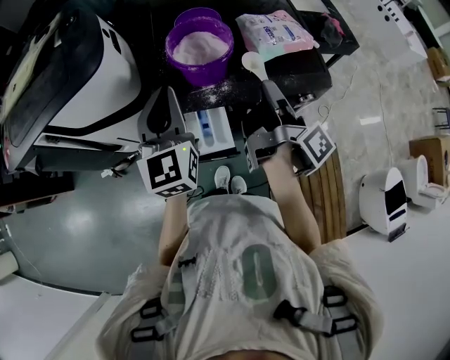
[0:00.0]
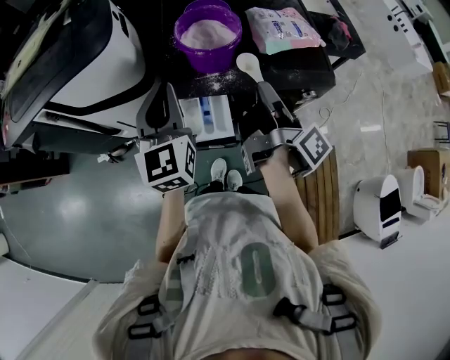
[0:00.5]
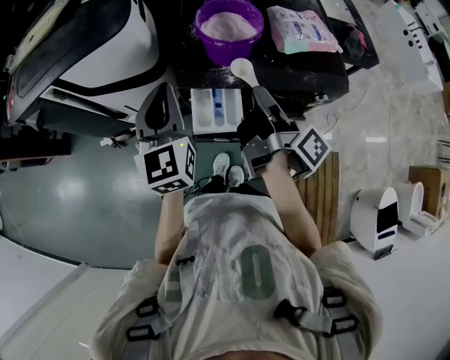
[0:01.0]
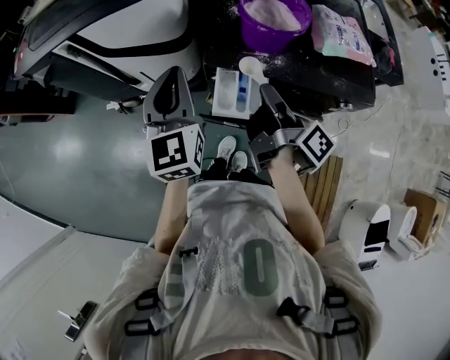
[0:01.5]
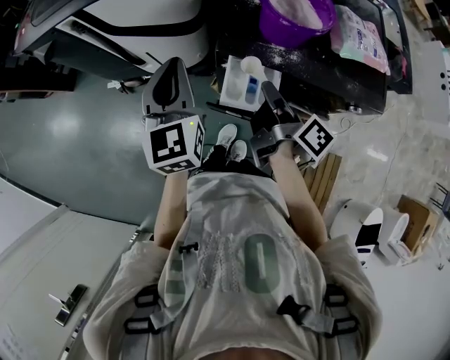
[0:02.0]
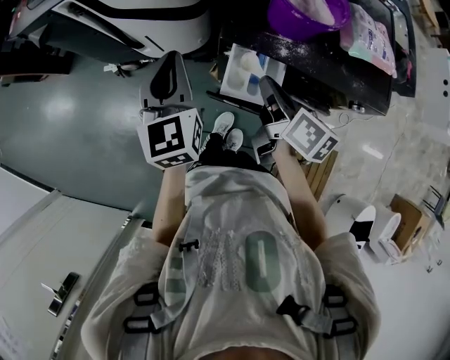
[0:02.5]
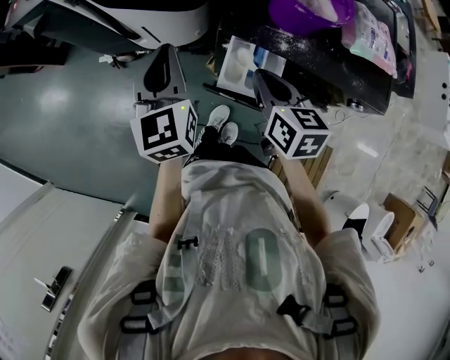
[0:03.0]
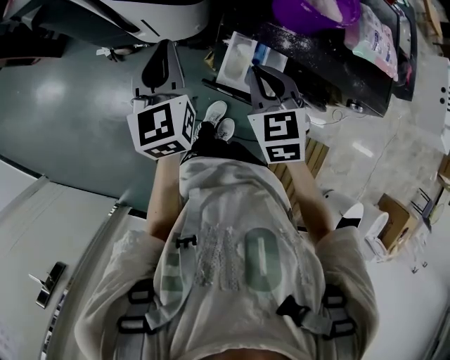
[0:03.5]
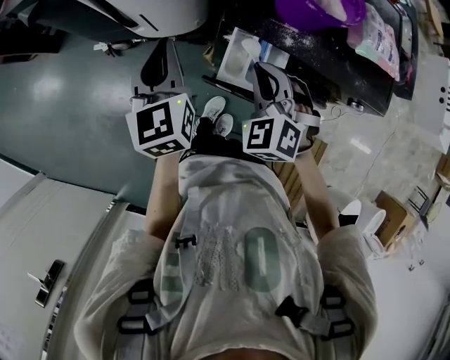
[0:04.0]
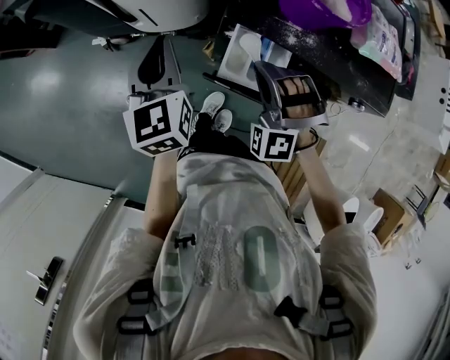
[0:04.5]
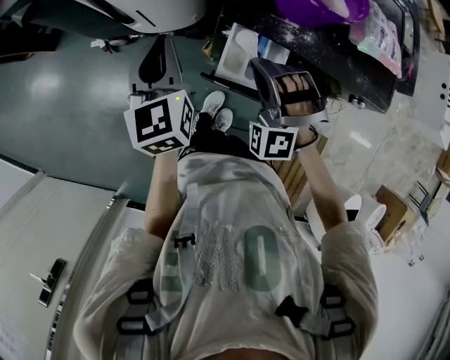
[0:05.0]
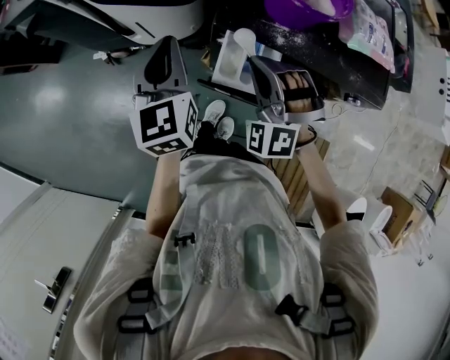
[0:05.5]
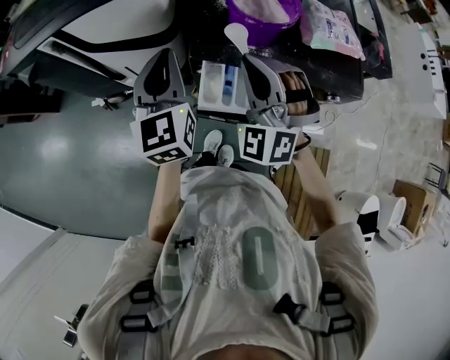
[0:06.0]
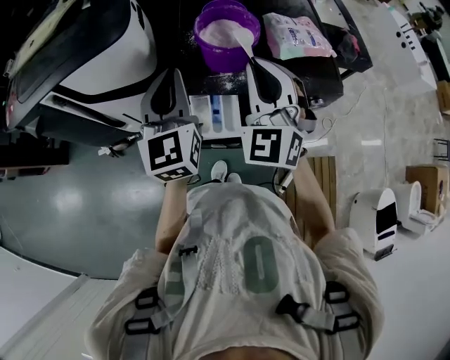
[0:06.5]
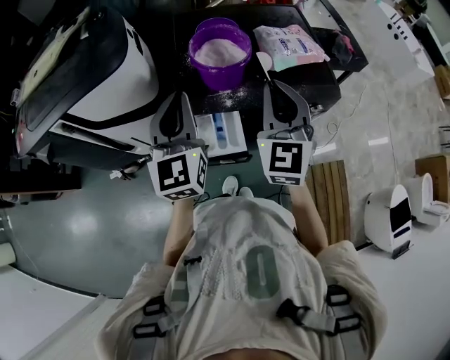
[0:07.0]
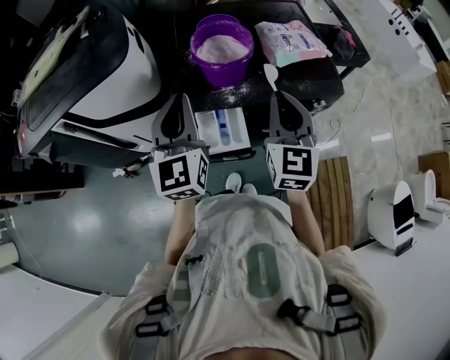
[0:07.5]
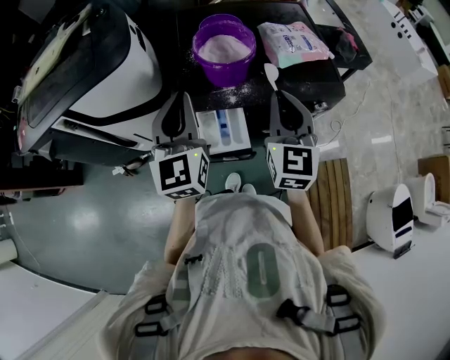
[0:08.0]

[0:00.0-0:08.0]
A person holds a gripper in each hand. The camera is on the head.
0:00.0 to 0:02.0: The right gripper shifts by roughly 20 cm, and rotates approximately 40 degrees; the left gripper changes place by approximately 15 cm, and changes its angle by some 20 degrees.
0:02.0 to 0:04.0: The right gripper moves to the left, approximately 5 cm, and twists some 130 degrees counterclockwise, seen from behind; the left gripper is displaced downward by approximately 5 cm.
0:04.0 to 0:06.0: The right gripper travels upward by about 15 cm, and turns by some 30 degrees, while the left gripper travels to the right and upward by about 10 cm.
0:06.0 to 0:08.0: The right gripper is displaced to the right by about 15 cm, and rolls clockwise, seen from behind, by about 60 degrees, while the left gripper shifts approximately 10 cm to the right and upward.

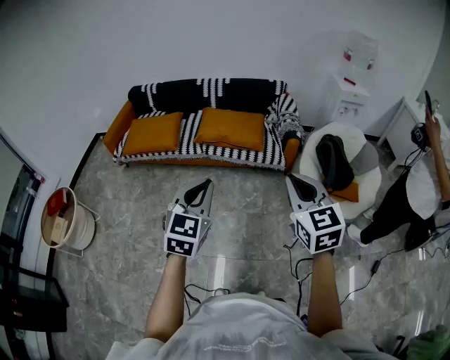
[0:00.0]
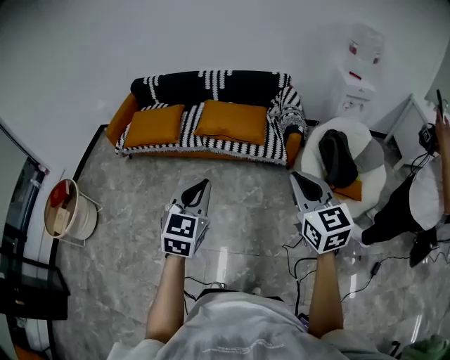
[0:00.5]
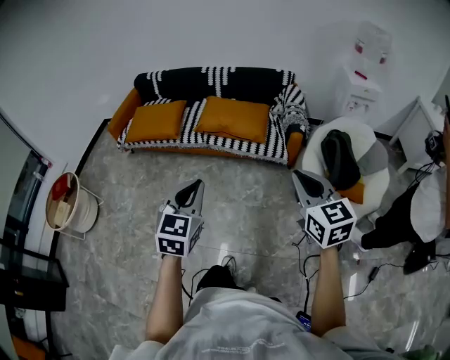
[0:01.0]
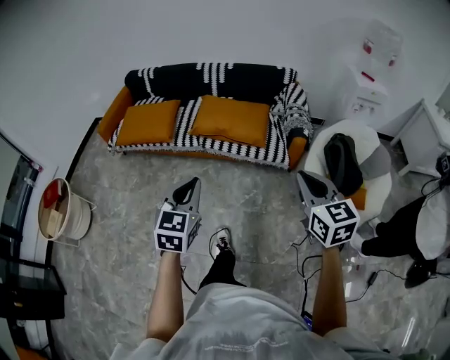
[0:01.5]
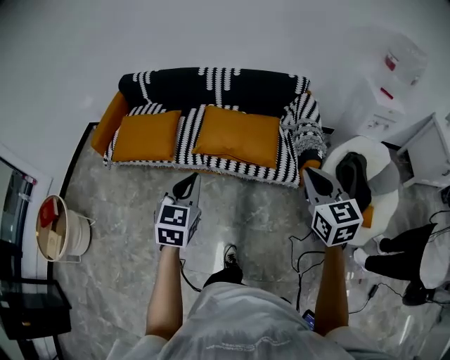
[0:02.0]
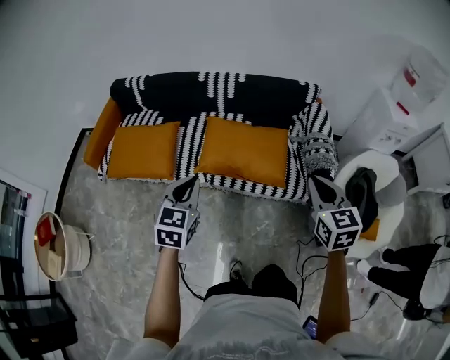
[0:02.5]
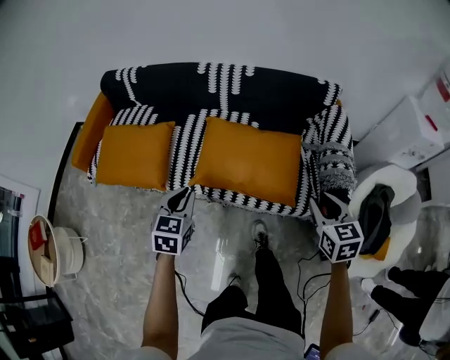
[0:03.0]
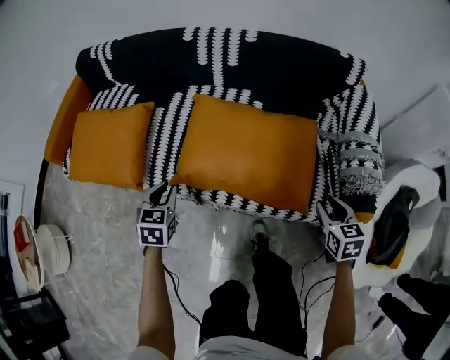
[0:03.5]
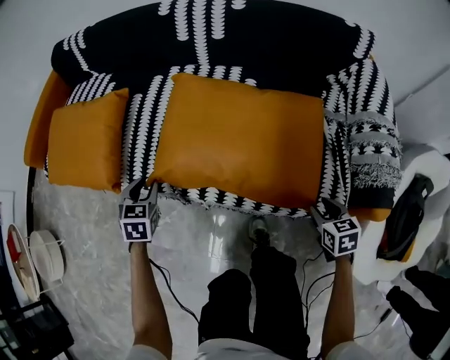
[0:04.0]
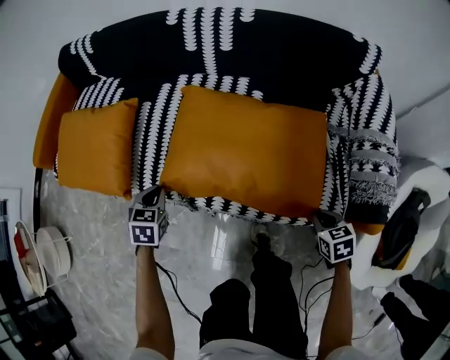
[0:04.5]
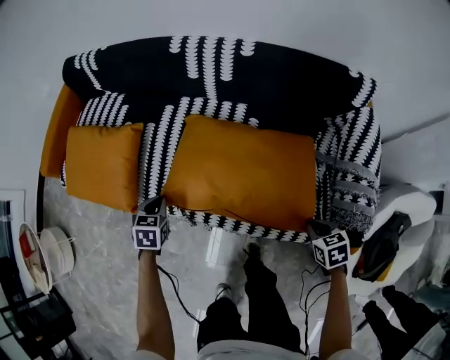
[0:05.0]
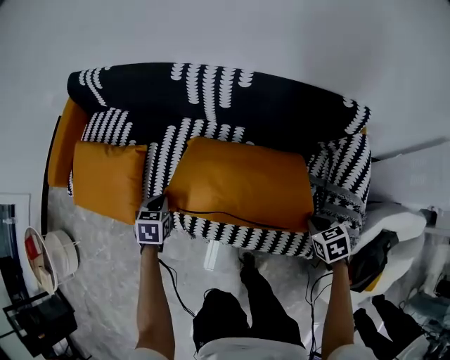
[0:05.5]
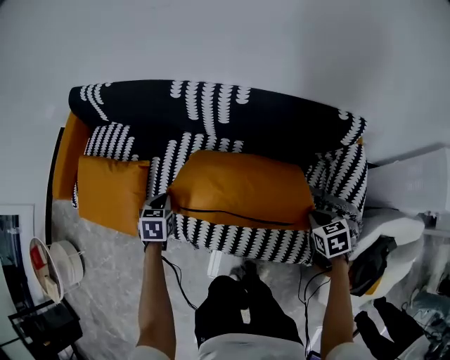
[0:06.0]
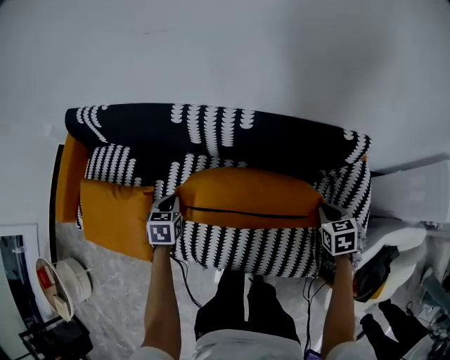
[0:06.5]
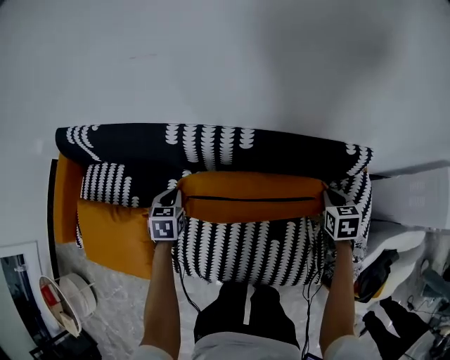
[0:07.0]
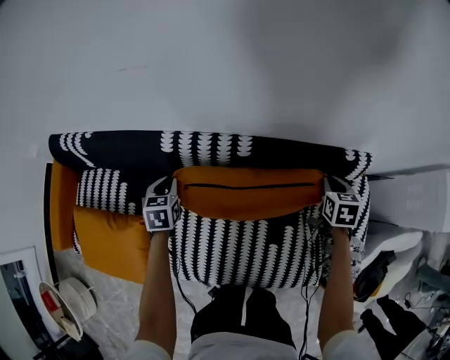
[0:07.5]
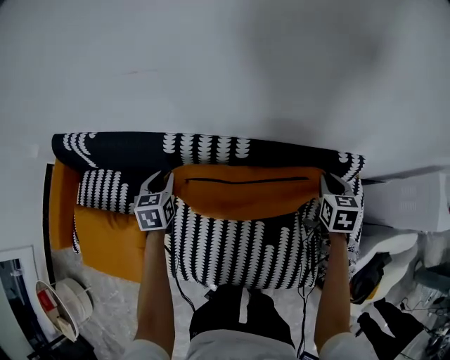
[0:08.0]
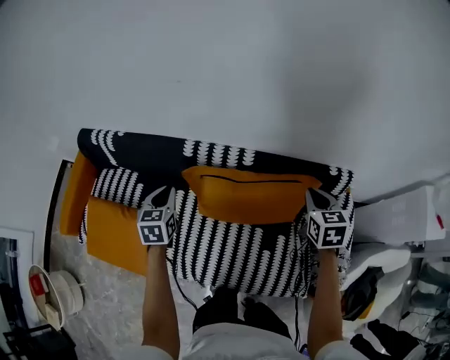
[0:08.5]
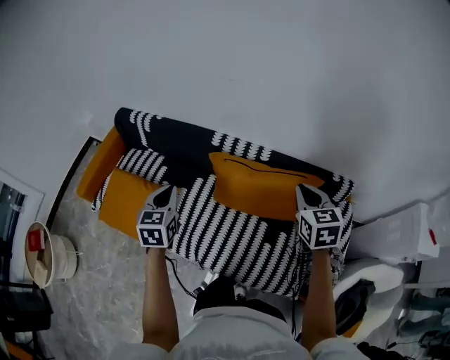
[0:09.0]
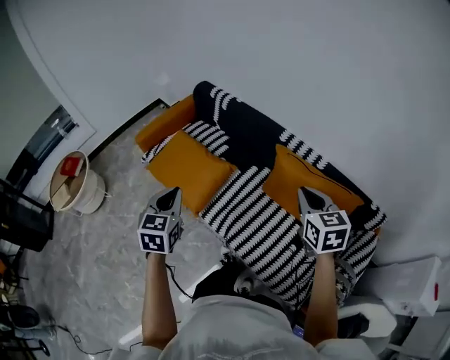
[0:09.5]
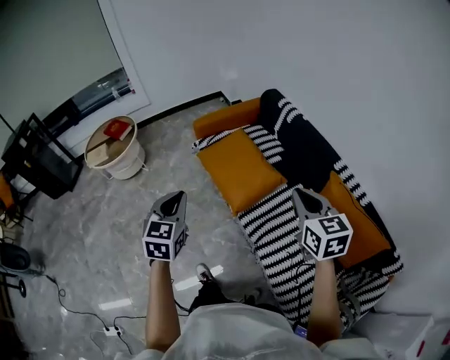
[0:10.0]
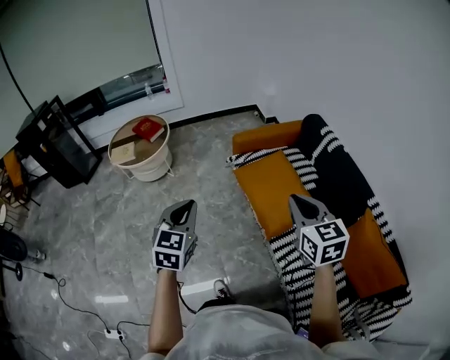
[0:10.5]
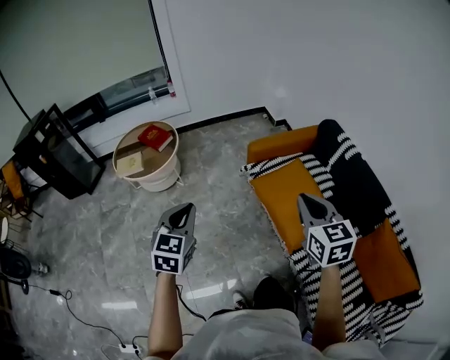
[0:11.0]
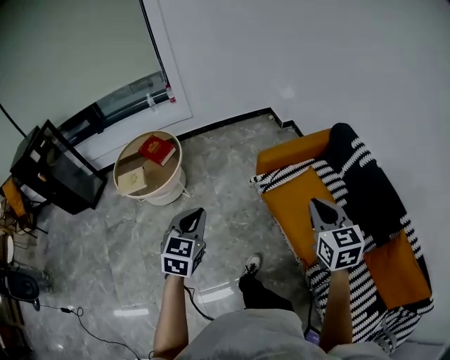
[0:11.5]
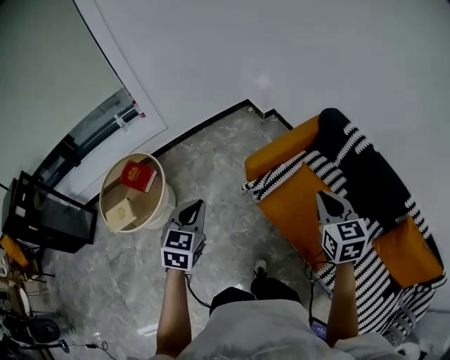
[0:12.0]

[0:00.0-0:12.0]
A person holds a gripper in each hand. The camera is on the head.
0:00.0 to 0:02.0: Both grippers travel together forward, approximately 35 cm.
0:02.0 to 0:04.0: Both grippers move downward and forward, approximately 70 cm. The left gripper changes its angle by about 30 degrees, and opens its fingers; the right gripper tilts its fingers approximately 40 degrees downward, and opens its fingers.
0:04.0 to 0:06.0: The right gripper is displaced upward, forward and to the right by about 30 cm, and closes up. The left gripper goes approximately 25 cm forward, upward and to the right, and closes up.
0:06.0 to 0:08.0: The grippers both shift forward by some 30 cm. The right gripper changes its angle by approximately 30 degrees. Meanwhile the left gripper opens up.
0:08.0 to 0:10.0: The pair of grippers is taken approximately 70 cm. The right gripper rotates some 80 degrees. The left gripper turns by some 50 degrees, and closes its fingers.
0:10.0 to 0:12.0: Both grippers are carried forward and to the left, approximately 50 cm.

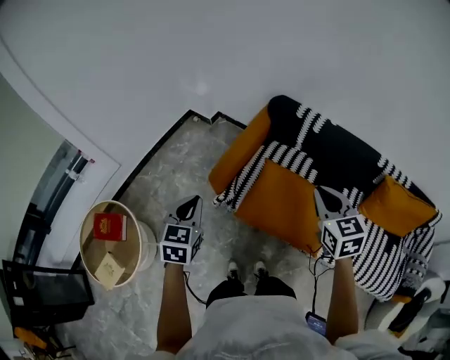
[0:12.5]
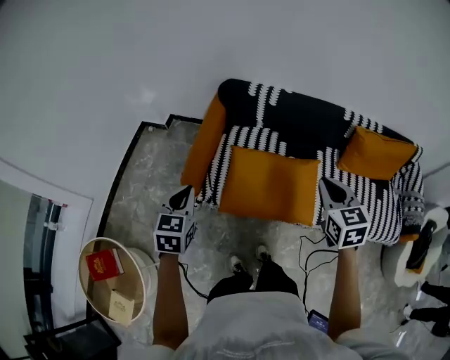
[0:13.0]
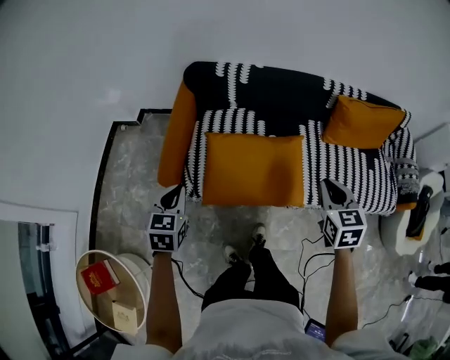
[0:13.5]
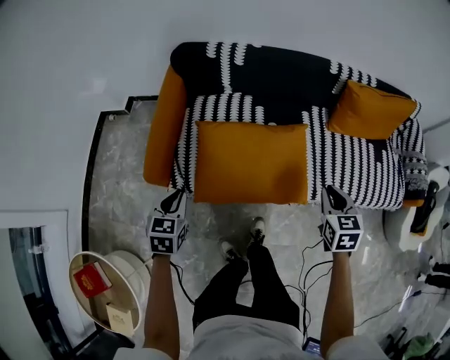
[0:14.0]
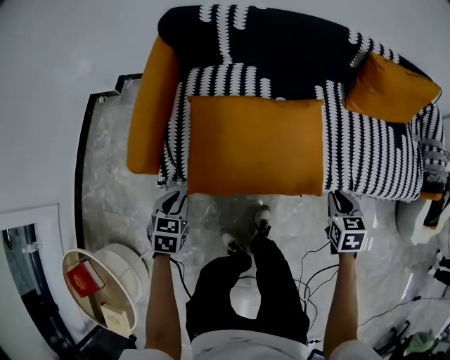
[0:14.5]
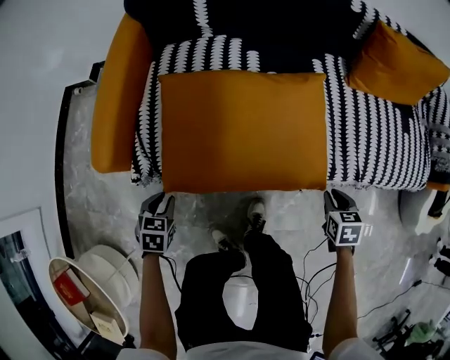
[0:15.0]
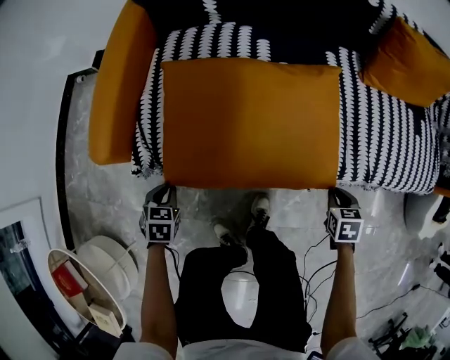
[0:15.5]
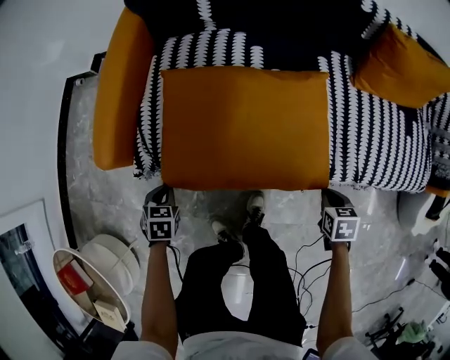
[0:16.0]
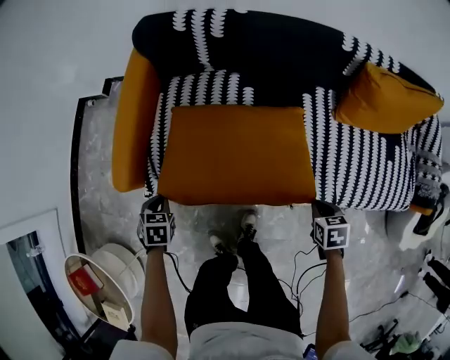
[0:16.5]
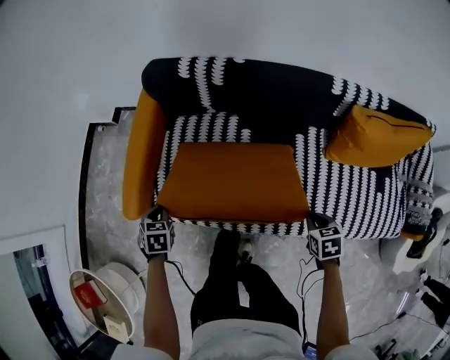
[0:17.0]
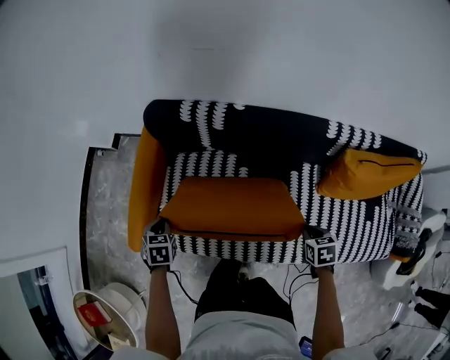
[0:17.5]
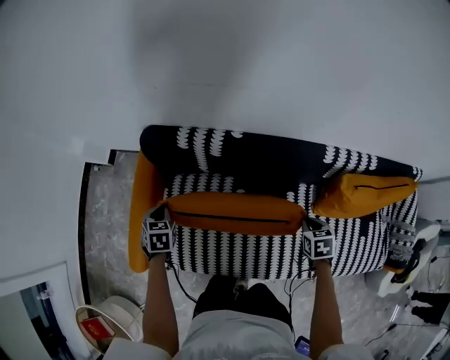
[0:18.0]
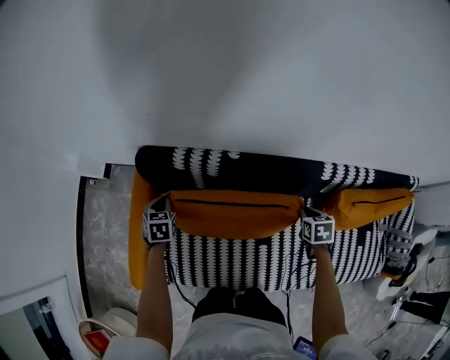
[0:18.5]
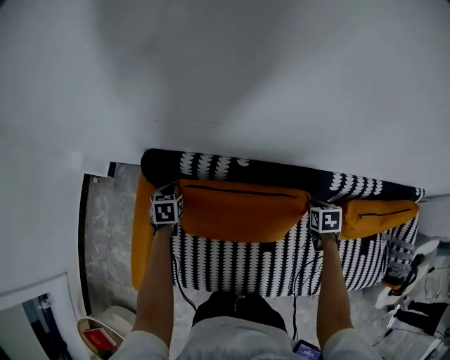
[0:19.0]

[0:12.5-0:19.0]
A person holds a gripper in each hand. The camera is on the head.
0:12.5 to 0:14.5: Both grippers move downward, approximately 40 cm. The left gripper turns by about 40 degrees, and opens up. The right gripper rotates roughly 50 degrees.
0:14.5 to 0:17.0: The right gripper goes downward and returns, some 15 cm each way. Meanwhile the left gripper goes downward and returns, some 15 cm each way, and rotates about 20 degrees.
0:17.0 to 0:19.0: The grippers both shift forward by roughly 40 cm.
